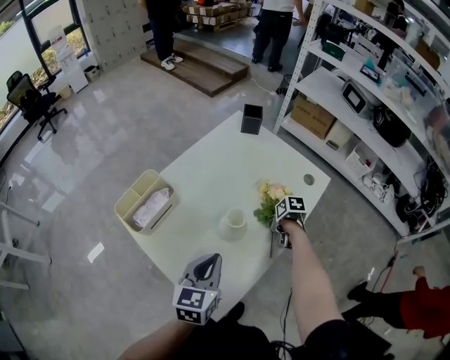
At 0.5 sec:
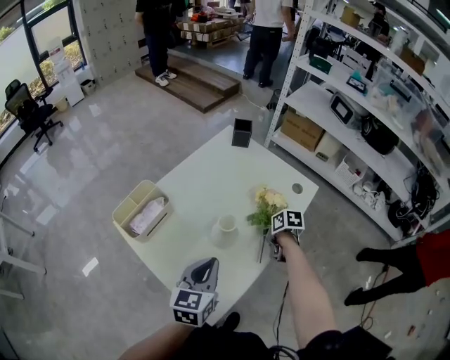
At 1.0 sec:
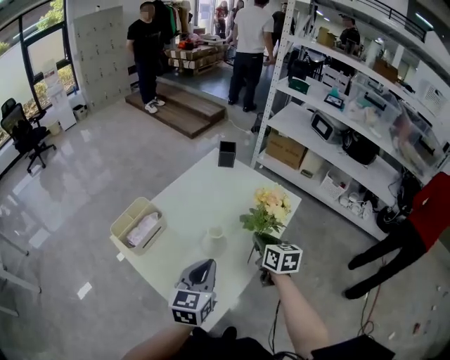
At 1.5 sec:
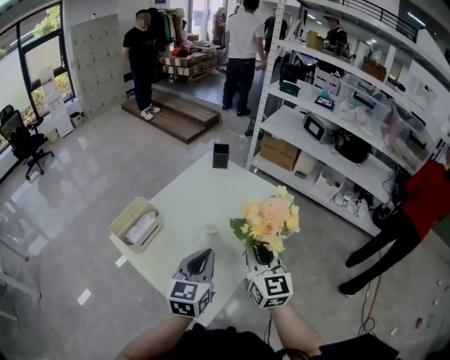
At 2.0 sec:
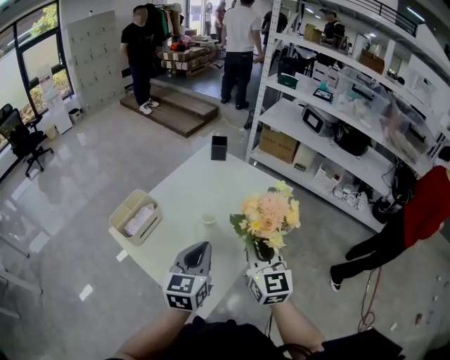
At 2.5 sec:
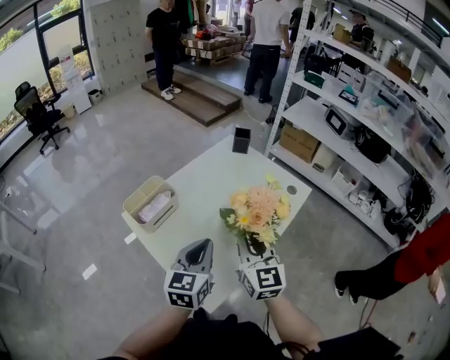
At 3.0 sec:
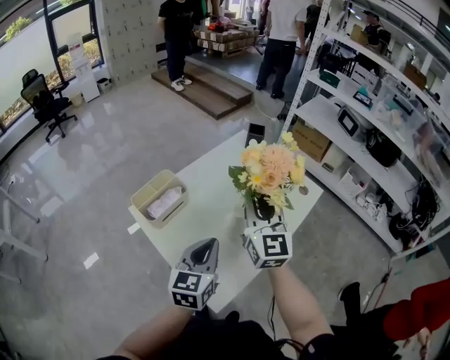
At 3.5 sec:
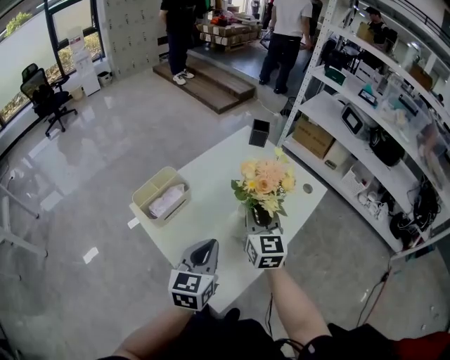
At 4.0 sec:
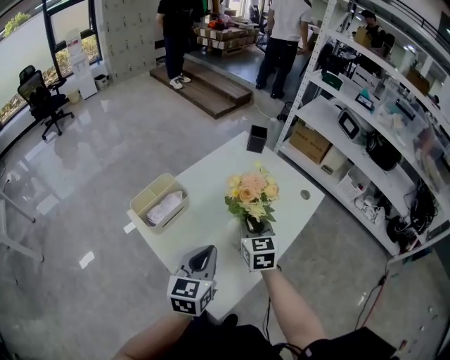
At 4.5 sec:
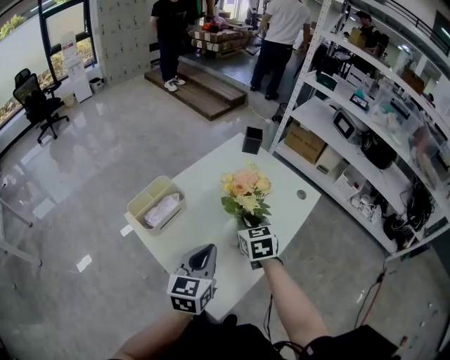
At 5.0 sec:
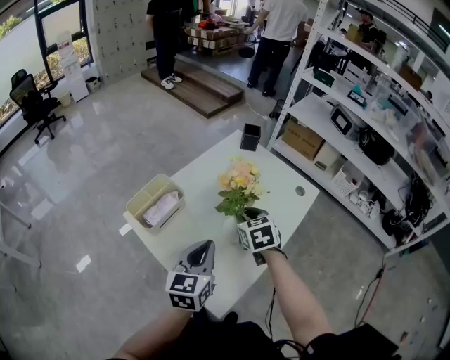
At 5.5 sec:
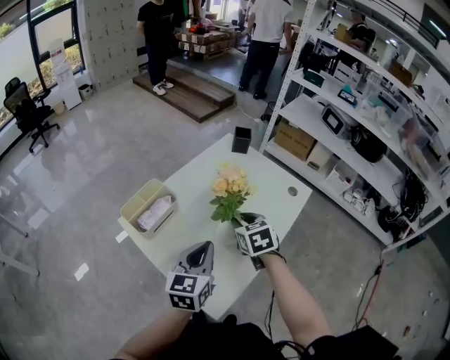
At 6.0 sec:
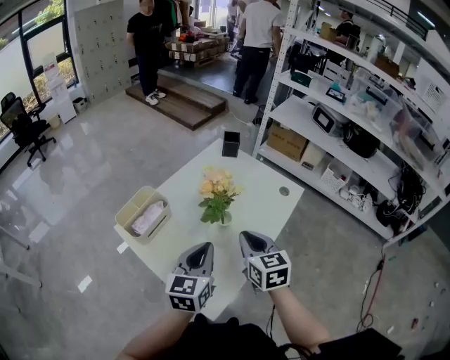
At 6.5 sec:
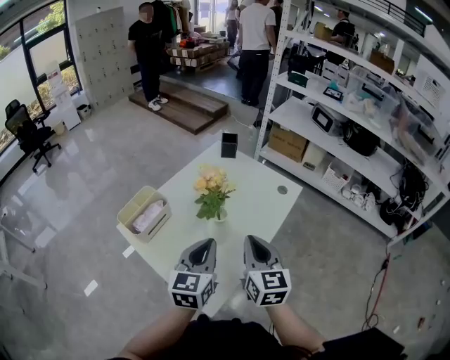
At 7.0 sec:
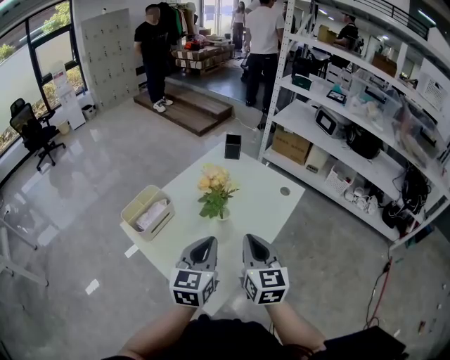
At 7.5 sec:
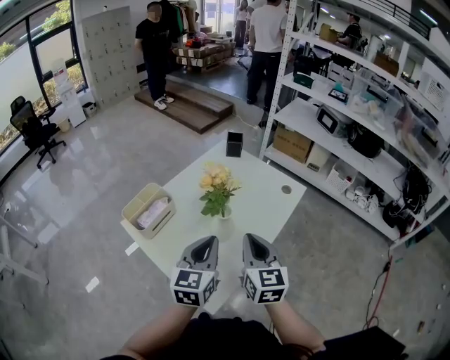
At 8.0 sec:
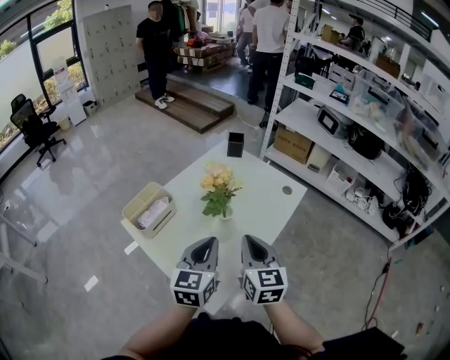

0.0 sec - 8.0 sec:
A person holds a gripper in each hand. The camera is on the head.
0.0 sec - 2.0 sec: The right gripper shifts approximately 35 cm upward, and points its fingers approximately 70 degrees further upward; the left gripper goes some 10 cm upward.
2.0 sec - 4.0 sec: The left gripper goes about 10 cm to the left. The right gripper is displaced forward, to the left and downward by roughly 20 cm, and swivels approximately 20 degrees.
4.0 sec - 6.0 sec: The right gripper travels backward and to the right by roughly 10 cm.
6.0 sec - 8.0 sec: The right gripper moves roughly 5 cm.

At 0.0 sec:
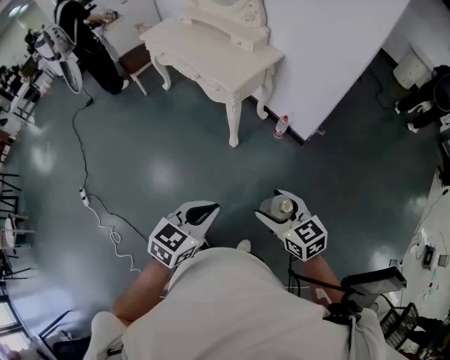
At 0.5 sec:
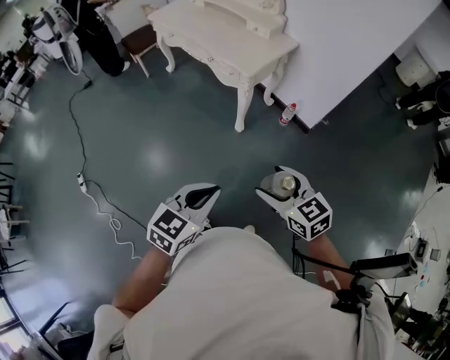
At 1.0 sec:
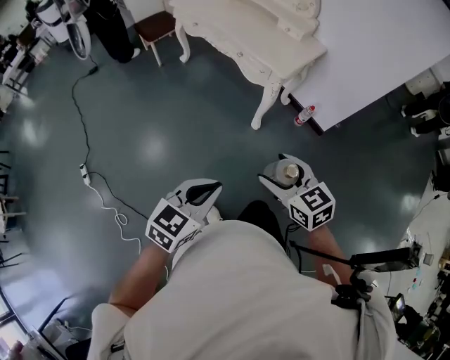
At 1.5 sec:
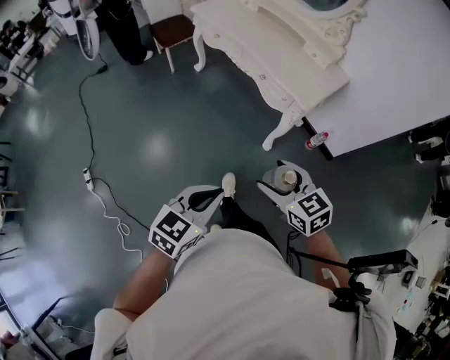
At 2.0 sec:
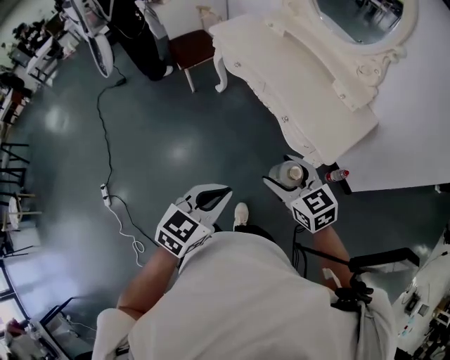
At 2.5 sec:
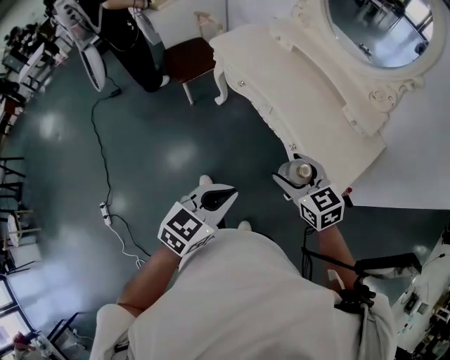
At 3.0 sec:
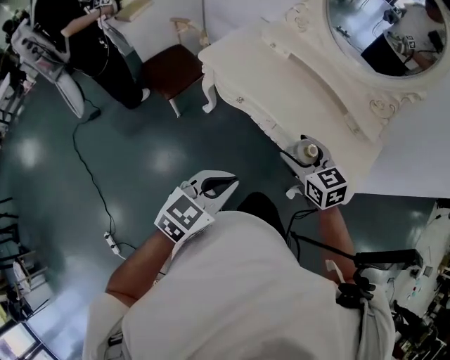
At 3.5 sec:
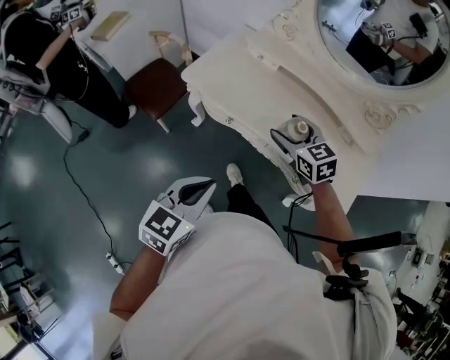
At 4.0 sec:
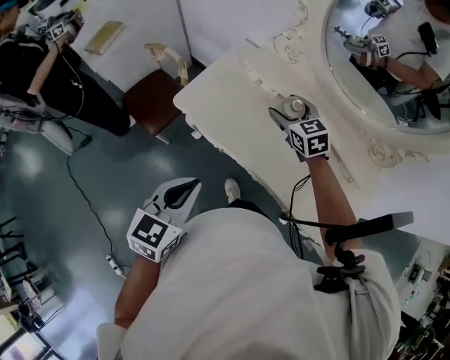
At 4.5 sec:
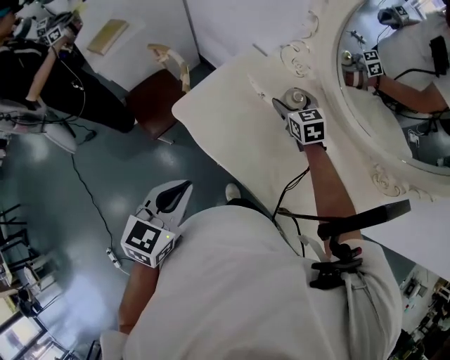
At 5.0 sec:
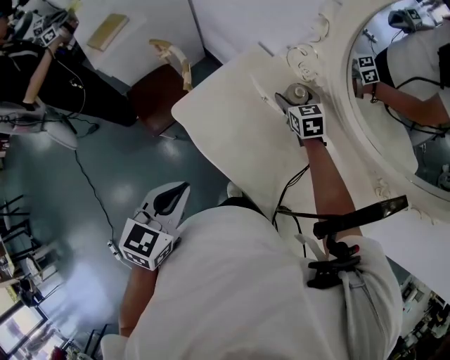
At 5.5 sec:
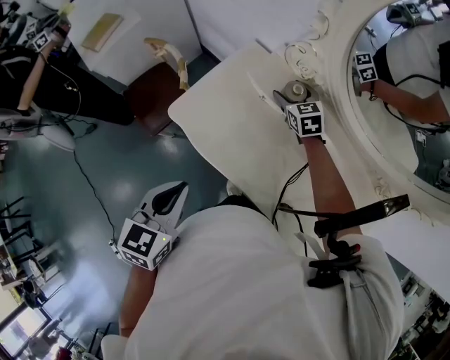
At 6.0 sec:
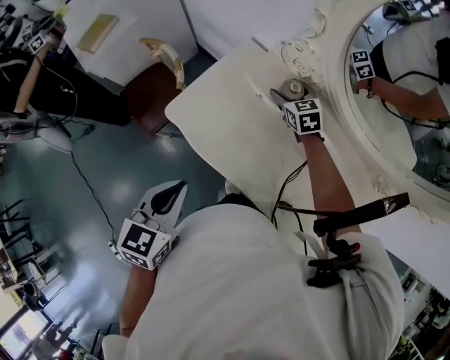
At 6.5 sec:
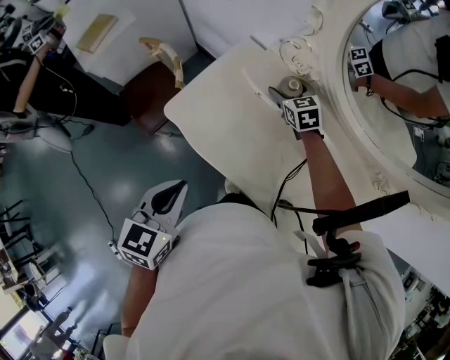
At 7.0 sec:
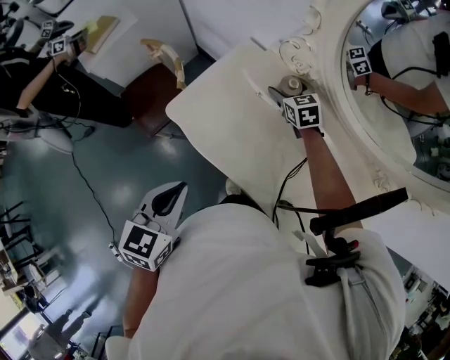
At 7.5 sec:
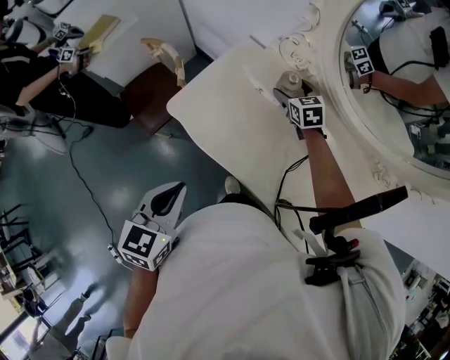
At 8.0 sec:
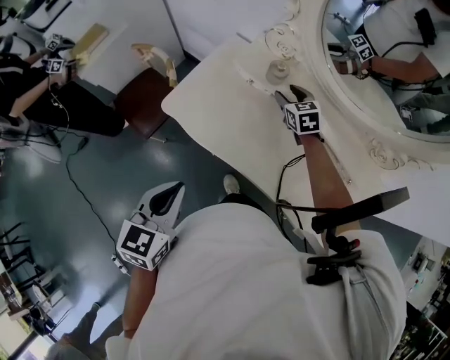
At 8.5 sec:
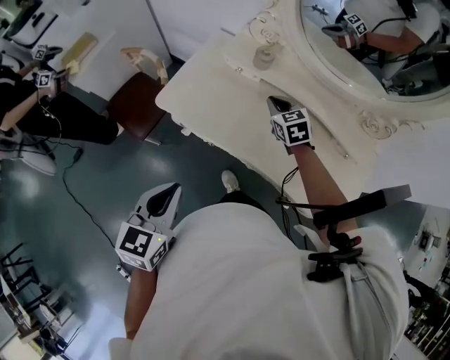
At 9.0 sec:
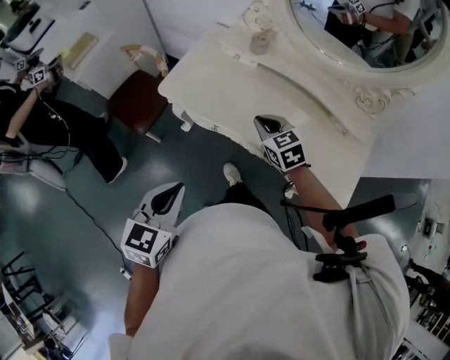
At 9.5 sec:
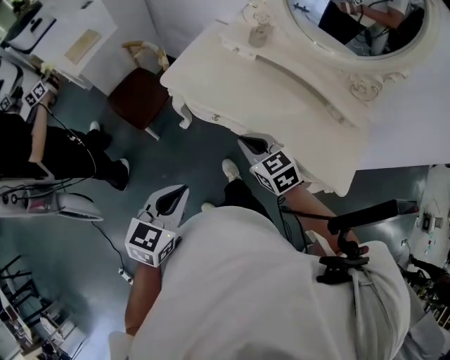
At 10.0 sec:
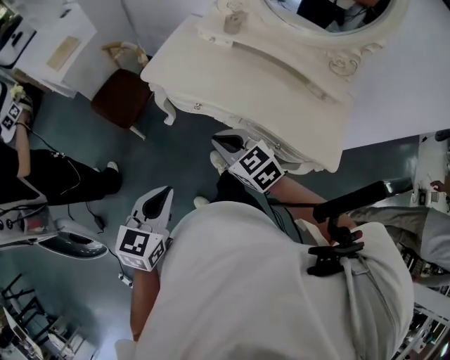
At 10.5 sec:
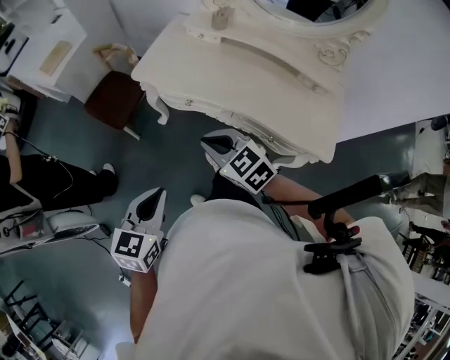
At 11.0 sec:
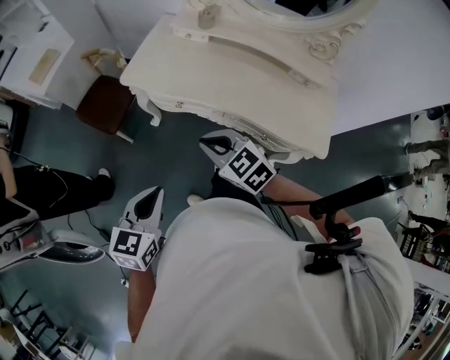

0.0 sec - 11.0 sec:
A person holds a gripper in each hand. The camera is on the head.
0.0 sec - 2.0 sec: The two grippers travel together, forward and to the left, approximately 60 cm.
2.0 sec - 3.5 sec: The two grippers travel together, forward and to the left, roughly 50 cm. The right gripper changes its angle by about 30 degrees.
3.5 sec - 5.5 sec: The left gripper goes about 30 cm forward, and swivels some 20 degrees; the right gripper goes roughly 40 cm forward.
5.5 sec - 7.5 sec: The grippers move only a little.
7.5 sec - 9.0 sec: The right gripper moves backward, some 35 cm, and closes. Meanwhile the left gripper goes roughly 20 cm backward.
9.0 sec - 11.0 sec: The left gripper is displaced backward by approximately 15 cm. The right gripper travels backward and to the left by about 25 cm.

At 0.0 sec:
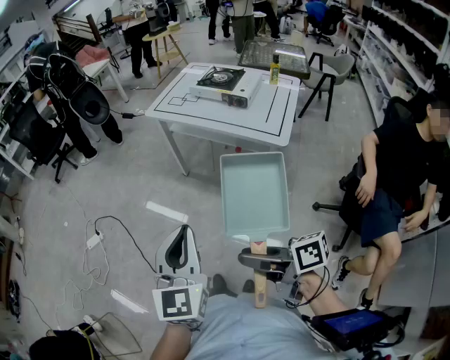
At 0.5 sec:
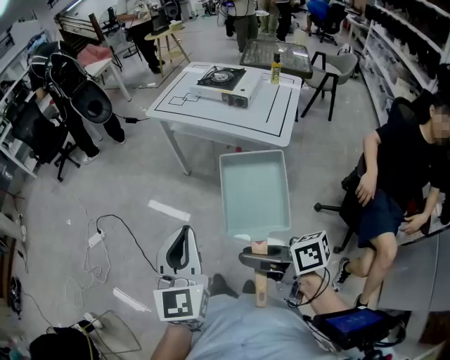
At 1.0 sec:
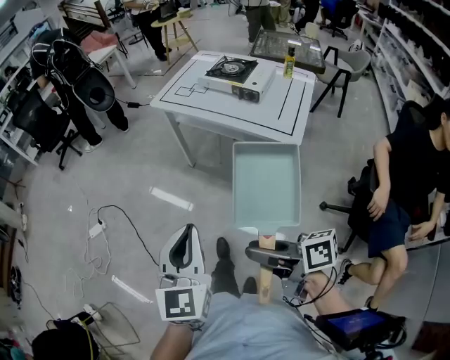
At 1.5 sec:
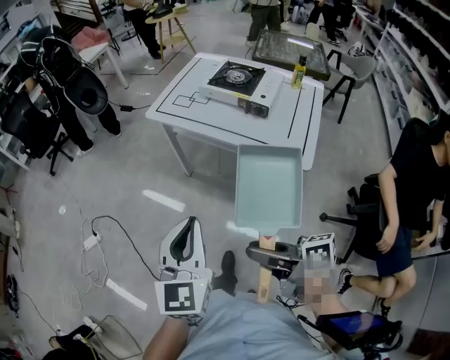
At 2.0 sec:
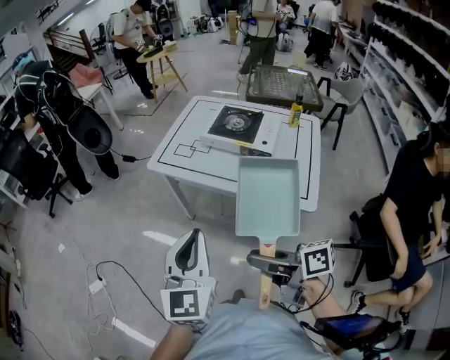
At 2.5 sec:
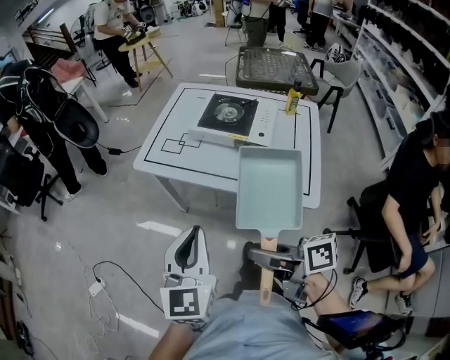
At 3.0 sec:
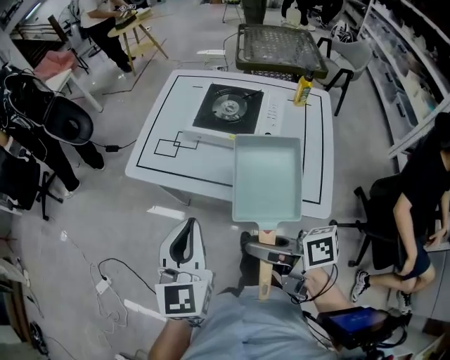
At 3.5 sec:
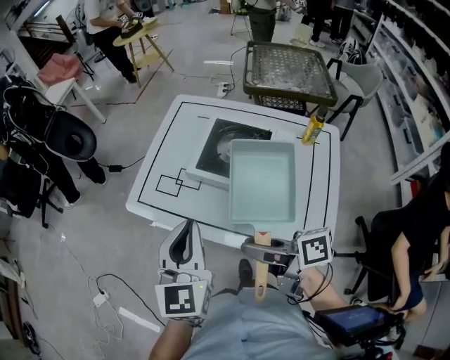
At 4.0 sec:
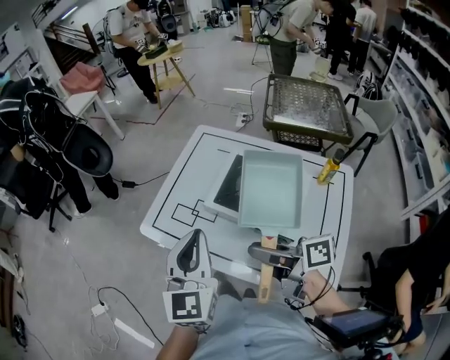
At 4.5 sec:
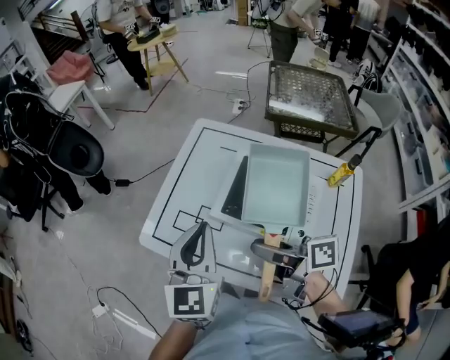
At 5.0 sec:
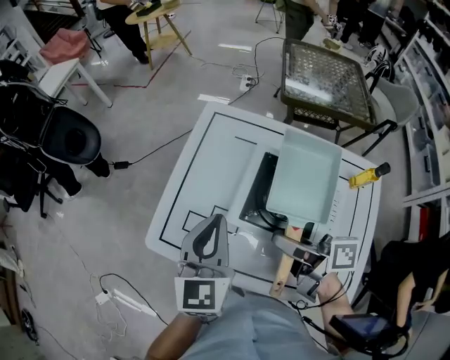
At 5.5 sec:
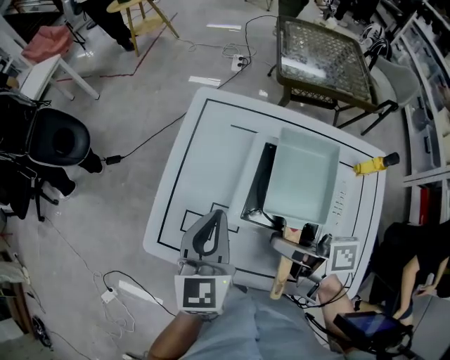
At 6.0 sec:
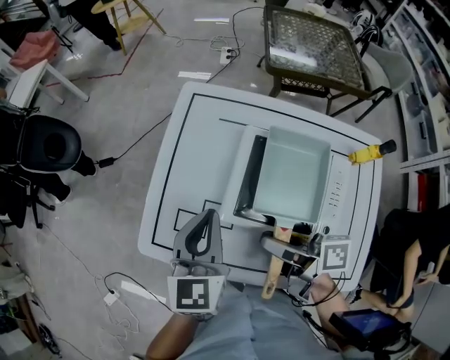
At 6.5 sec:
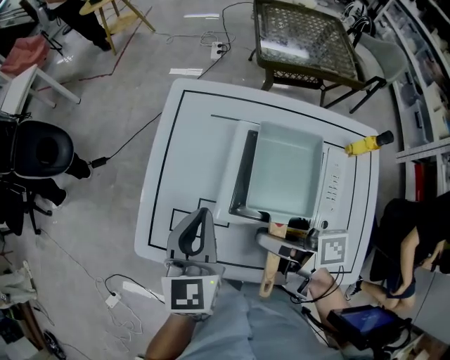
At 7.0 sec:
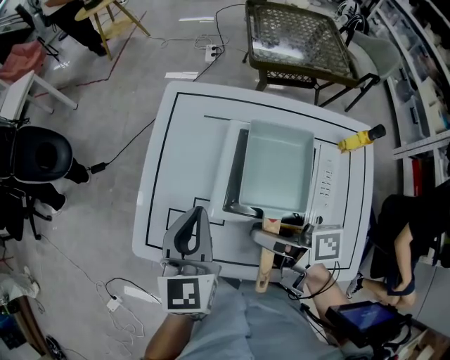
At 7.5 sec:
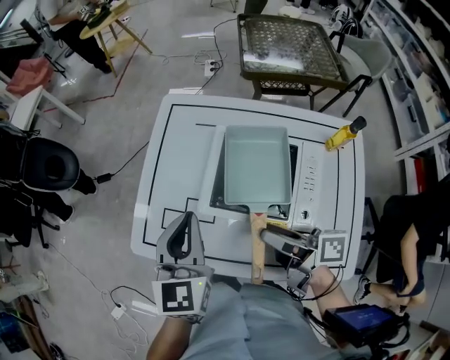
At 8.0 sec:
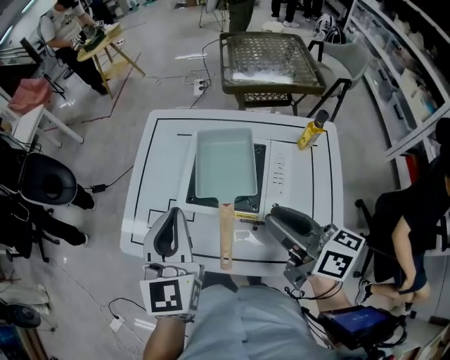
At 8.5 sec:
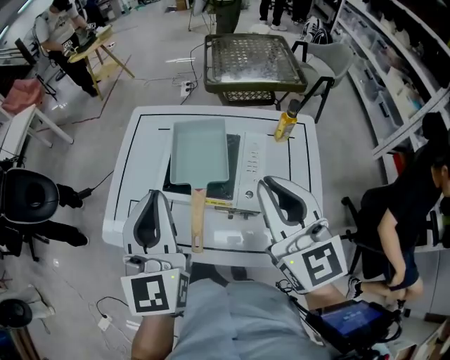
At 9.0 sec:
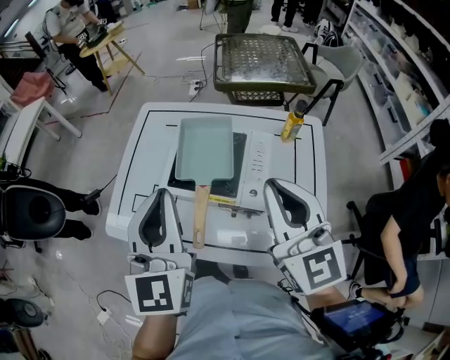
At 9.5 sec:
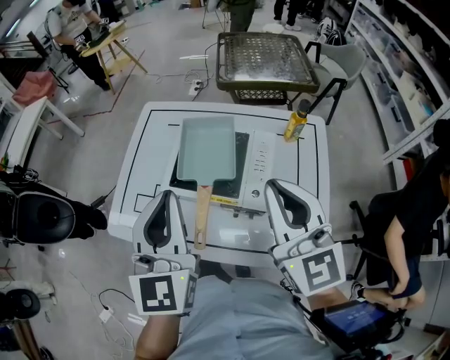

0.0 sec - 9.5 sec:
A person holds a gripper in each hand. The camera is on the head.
0.0 sec - 2.0 sec: Both grippers move forward, roughly 30 cm.
2.0 sec - 4.0 sec: The two grippers travel together, forward and to the right, about 40 cm.
4.0 sec - 5.5 sec: The right gripper goes some 20 cm forward, while the left gripper shifts roughly 25 cm forward and downward.
5.5 sec - 7.5 sec: The two grippers go approximately 5 cm backward.
7.5 sec - 9.5 sec: The right gripper shifts approximately 25 cm upward, to the right and backward, twists some 80 degrees counterclockwise, seen from behind, and closes. The left gripper travels upward, backward and to the right by about 20 cm.
